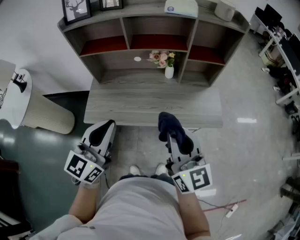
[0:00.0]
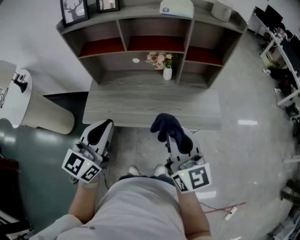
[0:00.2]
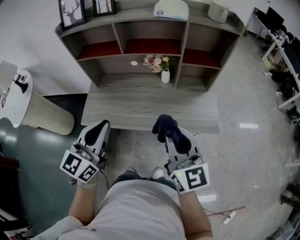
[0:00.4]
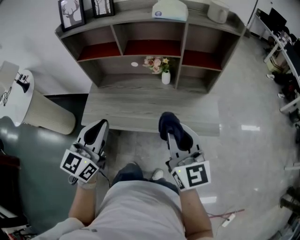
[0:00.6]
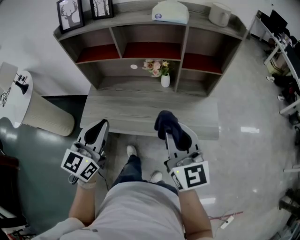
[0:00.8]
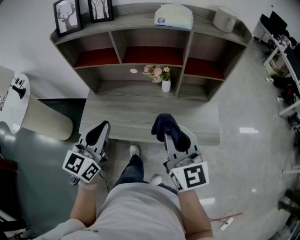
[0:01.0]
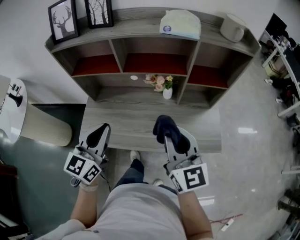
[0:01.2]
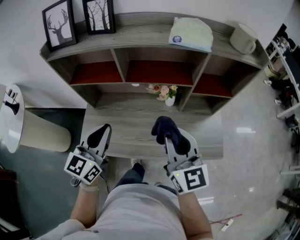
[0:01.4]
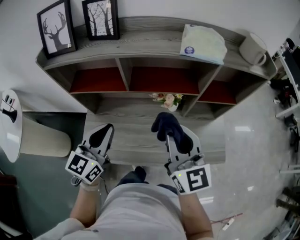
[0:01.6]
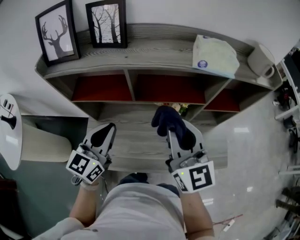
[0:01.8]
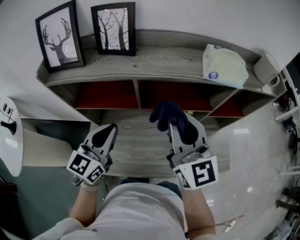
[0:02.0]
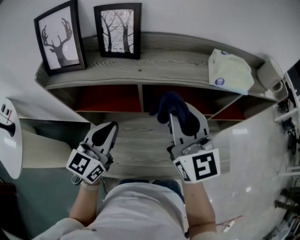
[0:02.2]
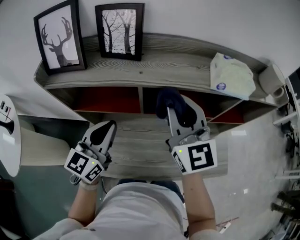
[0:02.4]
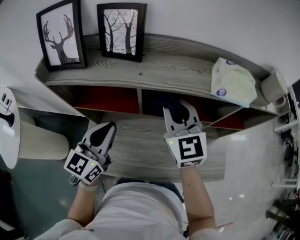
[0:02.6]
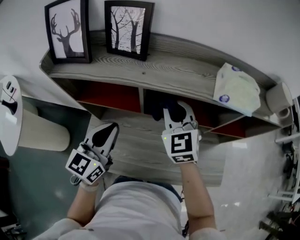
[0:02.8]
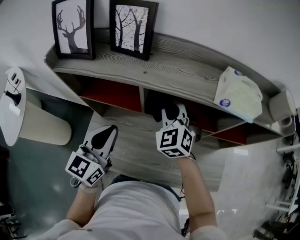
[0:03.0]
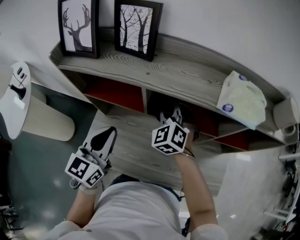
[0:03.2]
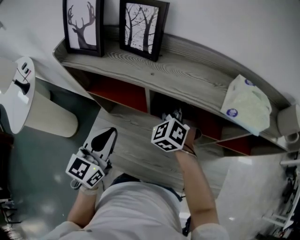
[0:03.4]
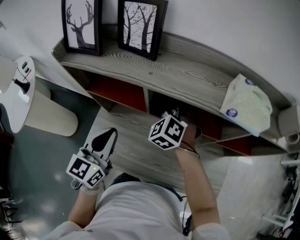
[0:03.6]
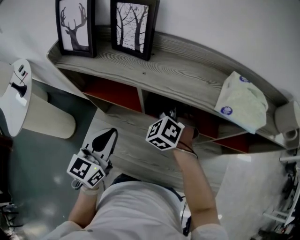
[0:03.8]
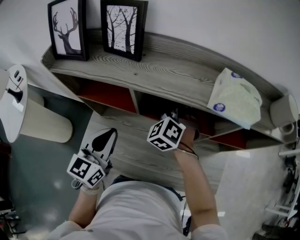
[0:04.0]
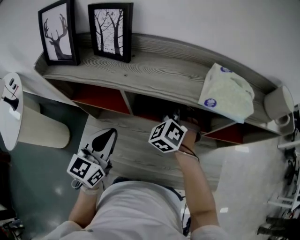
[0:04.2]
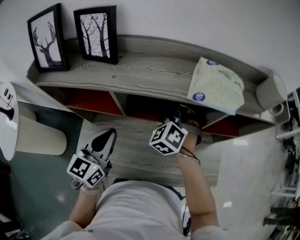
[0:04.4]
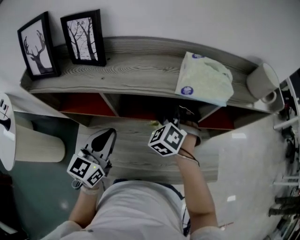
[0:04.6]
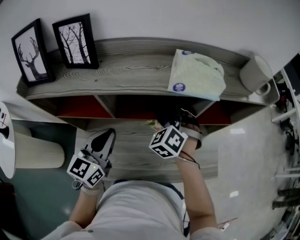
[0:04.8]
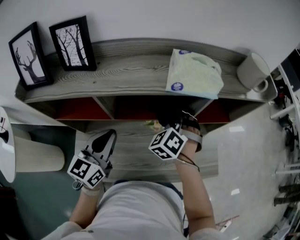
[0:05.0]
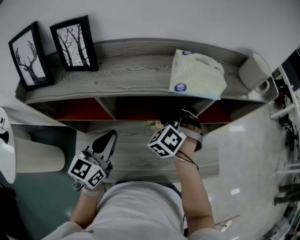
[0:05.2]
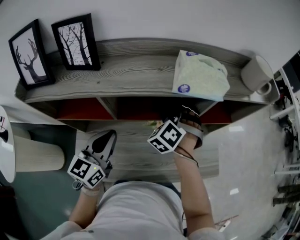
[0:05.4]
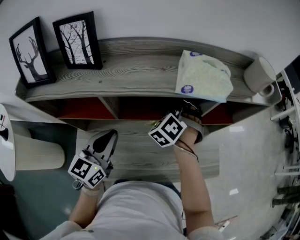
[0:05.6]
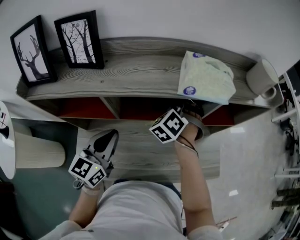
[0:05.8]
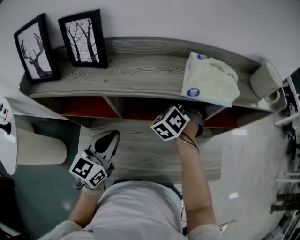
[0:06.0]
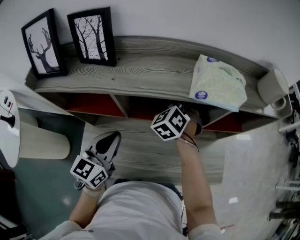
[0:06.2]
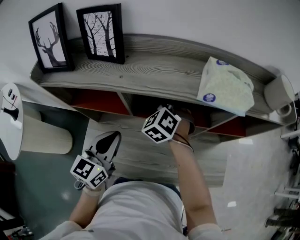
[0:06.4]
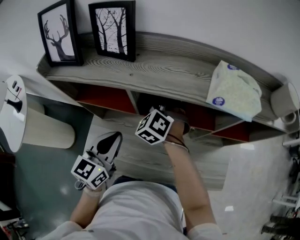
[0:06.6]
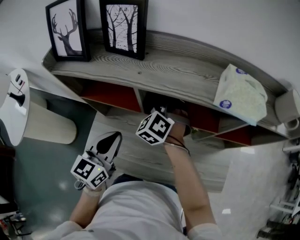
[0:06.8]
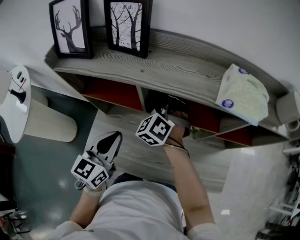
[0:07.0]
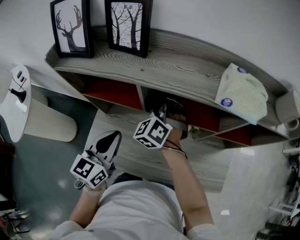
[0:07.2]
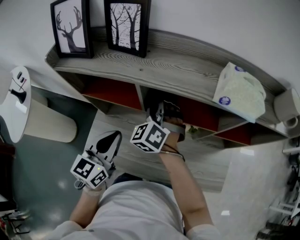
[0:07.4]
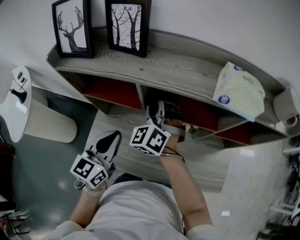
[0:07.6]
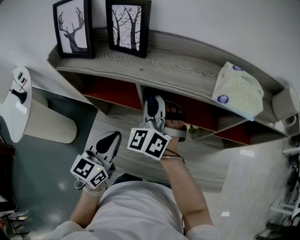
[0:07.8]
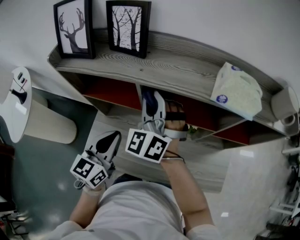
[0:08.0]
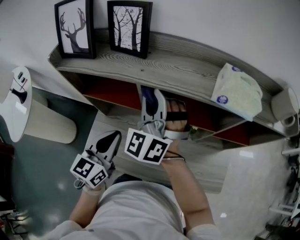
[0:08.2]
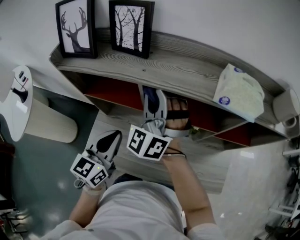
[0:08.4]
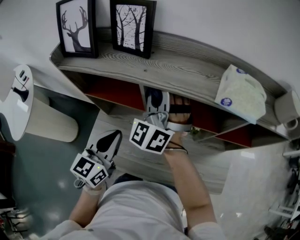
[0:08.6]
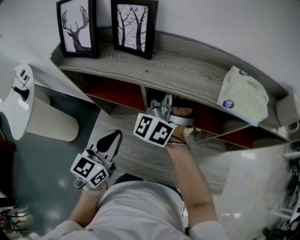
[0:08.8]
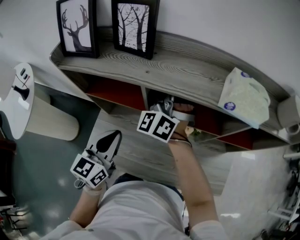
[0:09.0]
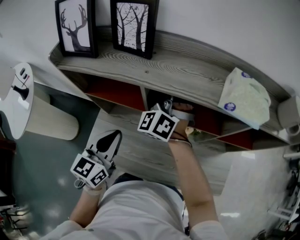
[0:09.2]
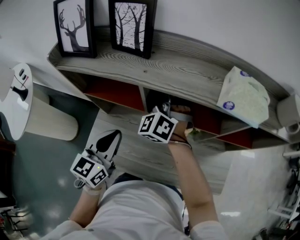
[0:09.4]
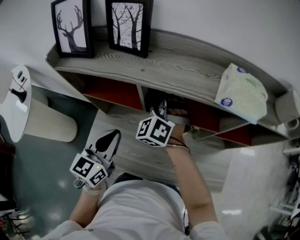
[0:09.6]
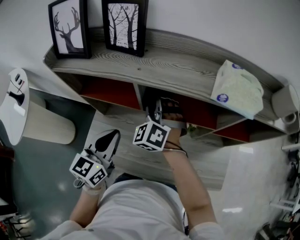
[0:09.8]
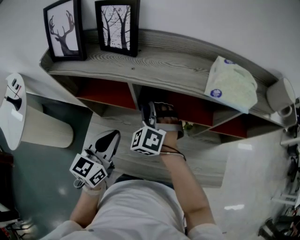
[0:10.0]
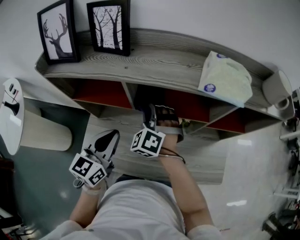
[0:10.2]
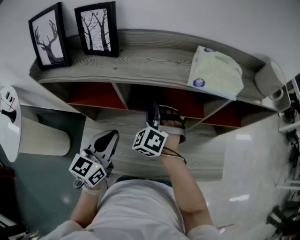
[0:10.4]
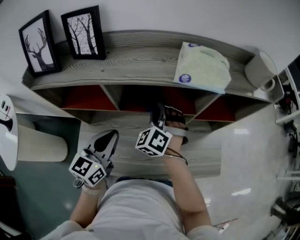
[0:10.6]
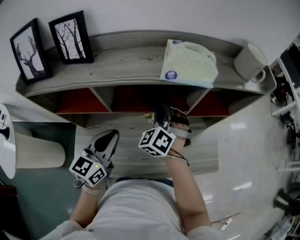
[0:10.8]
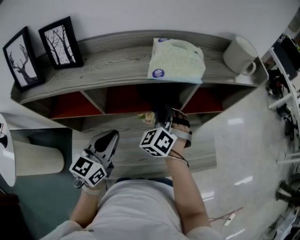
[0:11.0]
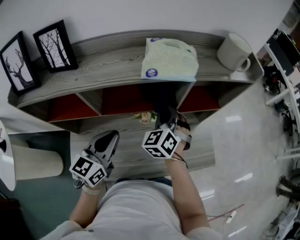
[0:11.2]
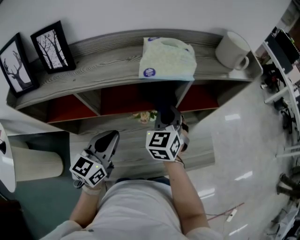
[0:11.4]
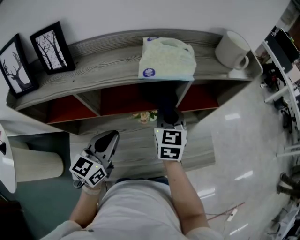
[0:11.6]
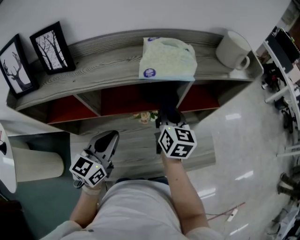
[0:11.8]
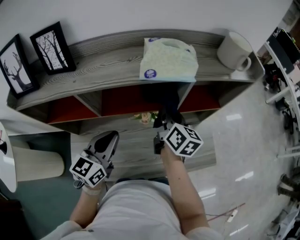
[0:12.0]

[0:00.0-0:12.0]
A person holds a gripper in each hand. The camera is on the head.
0:00.0 to 0:01.6: The two grippers go some 25 cm forward.
0:01.6 to 0:03.0: The left gripper shifts about 10 cm forward. Meanwhile the right gripper heads forward and to the left, covering roughly 25 cm, and swivels approximately 50 degrees.
0:03.0 to 0:04.4: The right gripper moves to the right, roughly 10 cm, and rotates approximately 20 degrees. Meanwhile the left gripper goes approximately 5 cm to the right.
0:04.4 to 0:06.0: The right gripper goes roughly 5 cm forward.
0:06.0 to 0:07.6: The left gripper heads backward, covering roughly 5 cm; the right gripper travels to the left and backward by some 20 cm, and changes its angle by some 30 degrees.
0:07.6 to 0:09.0: The right gripper heads upward and forward, covering some 10 cm.
0:09.0 to 0:10.4: The right gripper is displaced downward, to the right and backward by some 15 cm, and swivels roughly 20 degrees.
0:10.4 to 0:12.0: The left gripper moves to the right, some 10 cm. The right gripper heads to the right, covering about 20 cm, and rolls clockwise, seen from behind, by approximately 100 degrees.

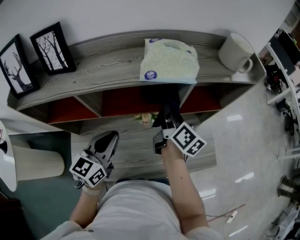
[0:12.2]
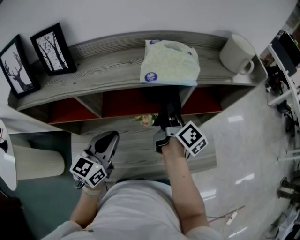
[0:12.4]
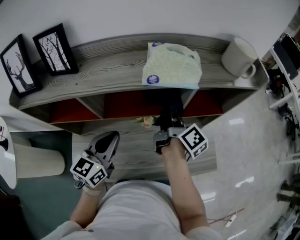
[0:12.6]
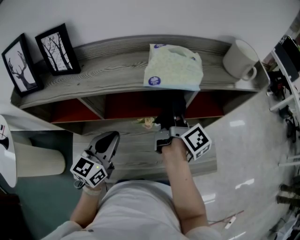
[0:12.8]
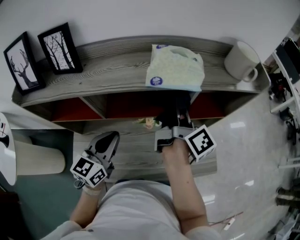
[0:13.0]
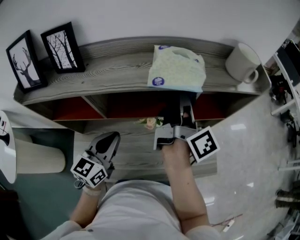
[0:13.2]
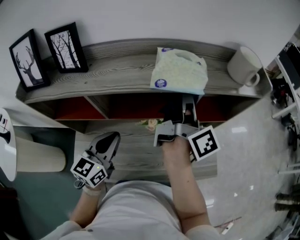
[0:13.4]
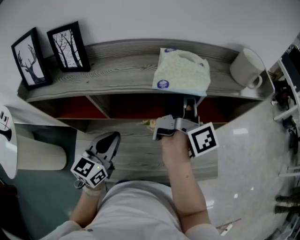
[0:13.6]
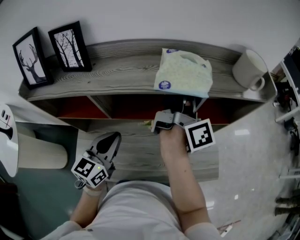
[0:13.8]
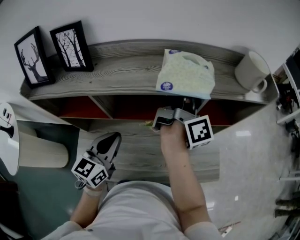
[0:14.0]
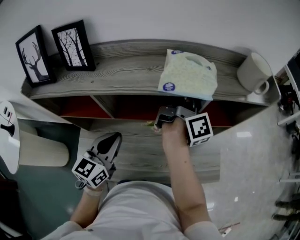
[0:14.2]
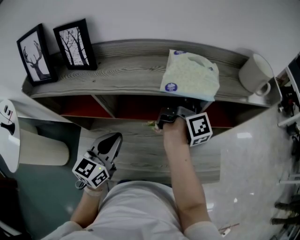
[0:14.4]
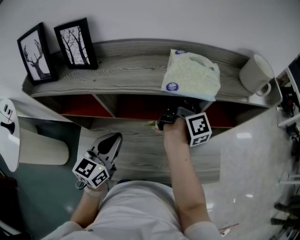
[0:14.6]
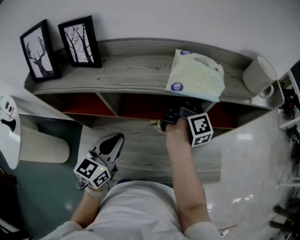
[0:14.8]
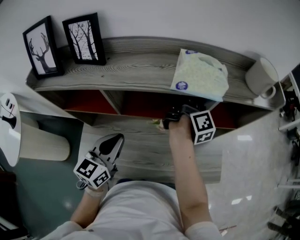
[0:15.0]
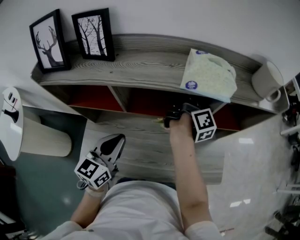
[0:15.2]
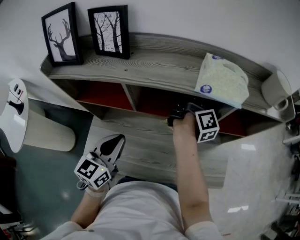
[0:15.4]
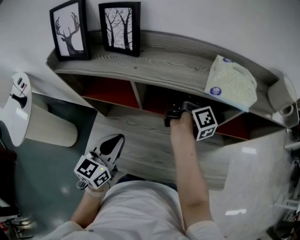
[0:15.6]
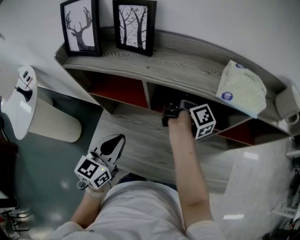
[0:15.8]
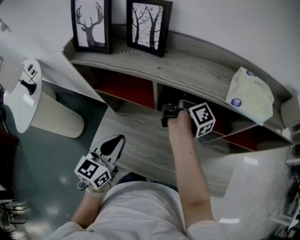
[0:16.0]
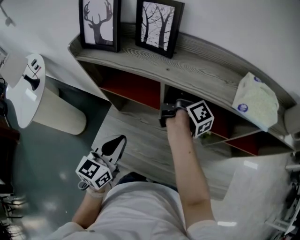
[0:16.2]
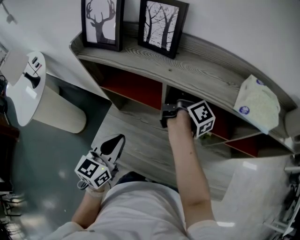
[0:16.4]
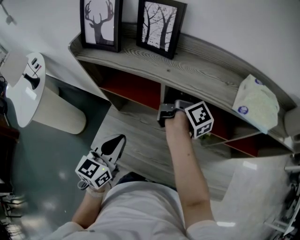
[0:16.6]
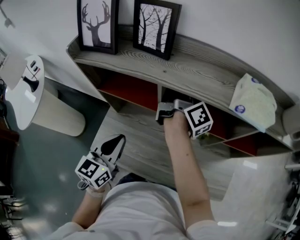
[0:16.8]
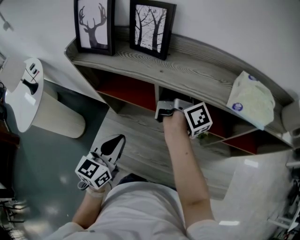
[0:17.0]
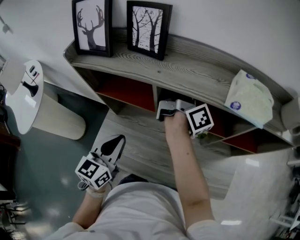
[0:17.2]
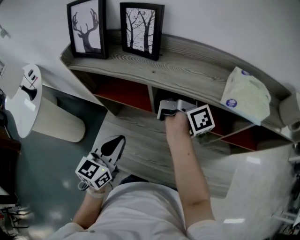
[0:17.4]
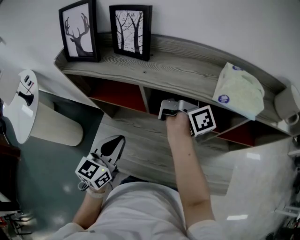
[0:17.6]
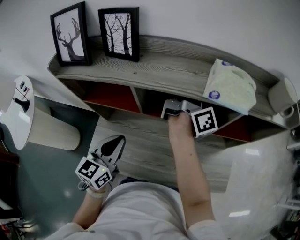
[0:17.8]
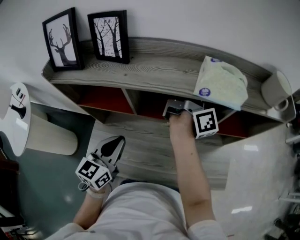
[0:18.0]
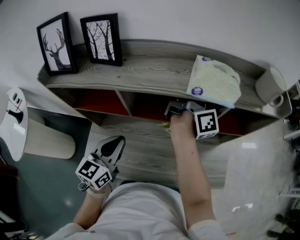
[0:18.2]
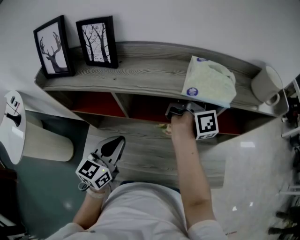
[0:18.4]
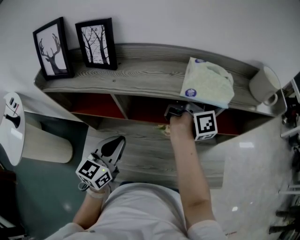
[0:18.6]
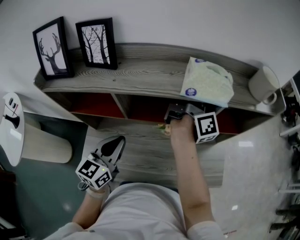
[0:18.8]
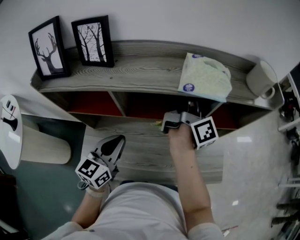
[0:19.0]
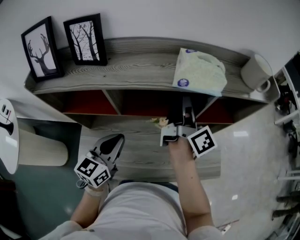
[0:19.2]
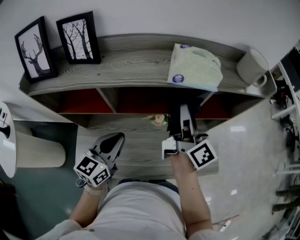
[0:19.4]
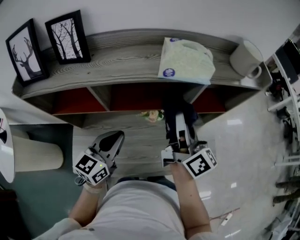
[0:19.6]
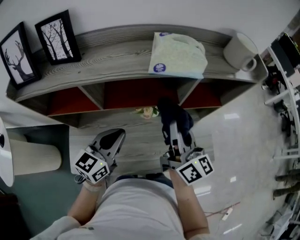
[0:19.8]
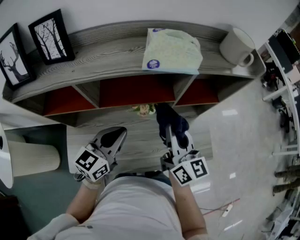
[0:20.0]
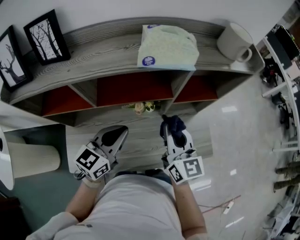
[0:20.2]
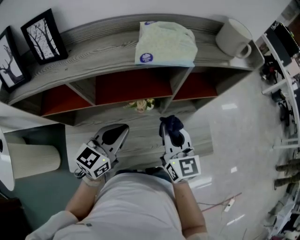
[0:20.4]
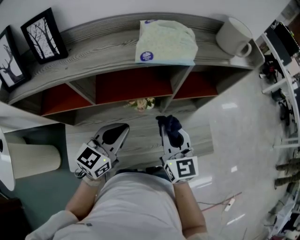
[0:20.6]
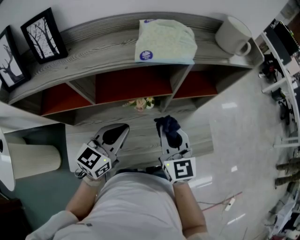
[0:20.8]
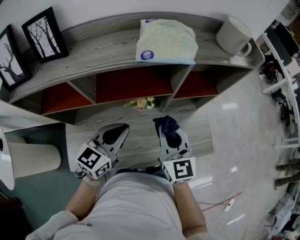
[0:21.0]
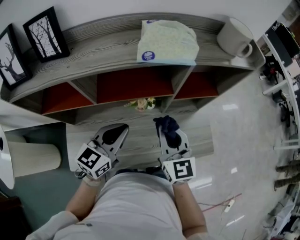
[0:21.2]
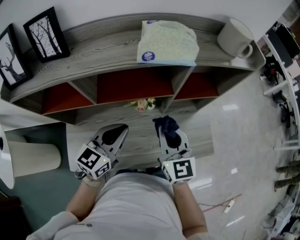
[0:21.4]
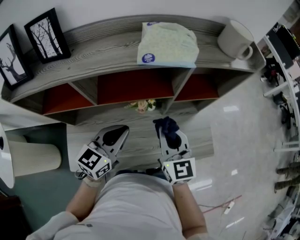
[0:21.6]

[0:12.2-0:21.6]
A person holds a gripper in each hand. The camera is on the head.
0:12.2 to 0:13.8: The right gripper heads upward, covering about 15 cm, and rotates roughly 40 degrees.
0:13.8 to 0:15.4: The right gripper goes about 15 cm downward and to the left. Meanwhile the left gripper heads backward, covering some 5 cm.
0:15.4 to 0:17.0: The left gripper travels to the left by about 5 cm; the right gripper heads to the left, covering some 20 cm, and changes its angle by about 30 degrees.
0:17.0 to 0:18.4: The left gripper travels to the right and forward by roughly 10 cm; the right gripper shifts about 20 cm to the right, and swivels some 30 degrees.
0:18.4 to 0:20.0: The left gripper is displaced to the right by some 10 cm, and turns by roughly 20 degrees. Meanwhile the right gripper travels backward by some 20 cm, and rolls counterclockwise, seen from behind, by about 50 degrees.
0:20.0 to 0:21.6: The right gripper turns by roughly 20 degrees.

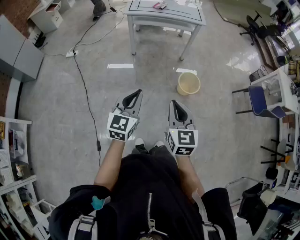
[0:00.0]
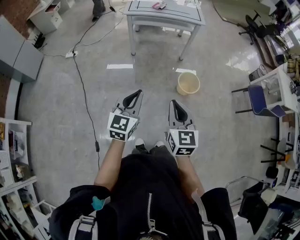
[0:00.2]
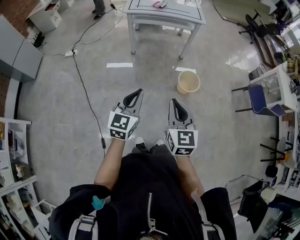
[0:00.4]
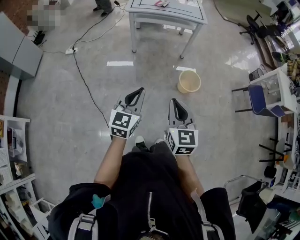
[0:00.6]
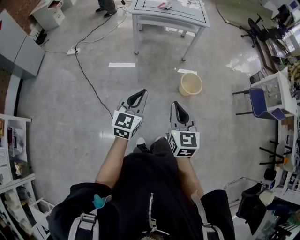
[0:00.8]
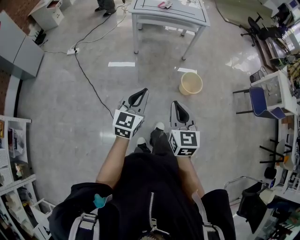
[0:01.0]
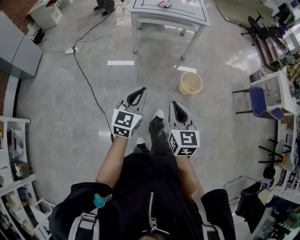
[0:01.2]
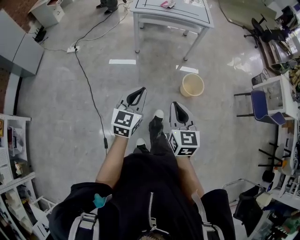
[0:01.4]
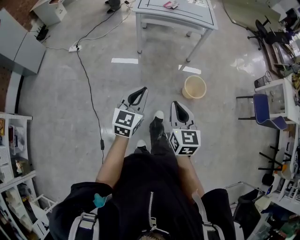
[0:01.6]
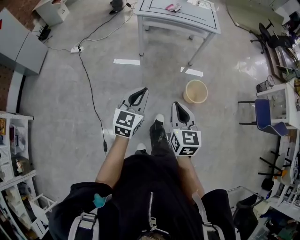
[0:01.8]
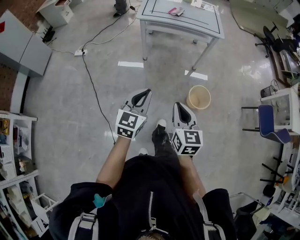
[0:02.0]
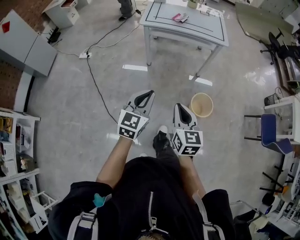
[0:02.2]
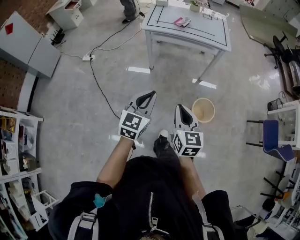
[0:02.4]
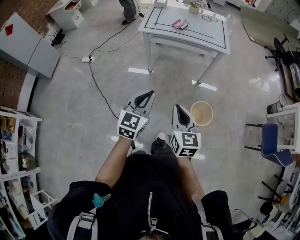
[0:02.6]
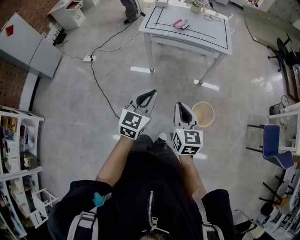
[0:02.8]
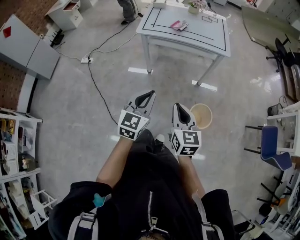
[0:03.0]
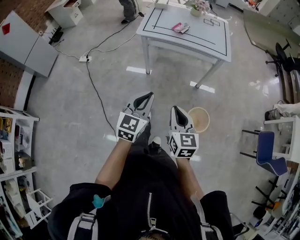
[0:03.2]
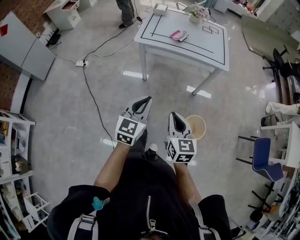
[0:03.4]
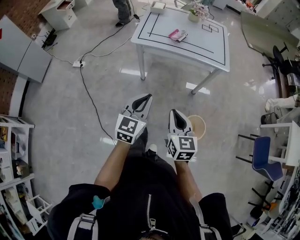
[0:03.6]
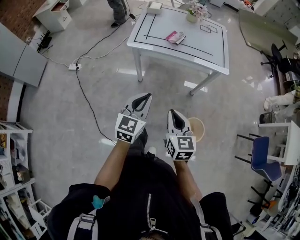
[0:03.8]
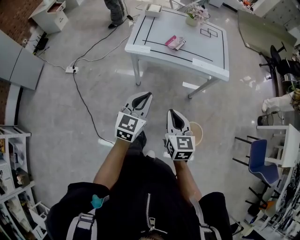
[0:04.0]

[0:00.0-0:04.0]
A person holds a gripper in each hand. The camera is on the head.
0:00.0 to 0:01.4: The right gripper moves some 5 cm; the left gripper shifts some 5 cm forward.
0:01.4 to 0:02.6: Both grippers travel together forward, roughly 20 cm.
0:02.6 to 0:04.0: The grippers both shift forward by about 25 cm.
